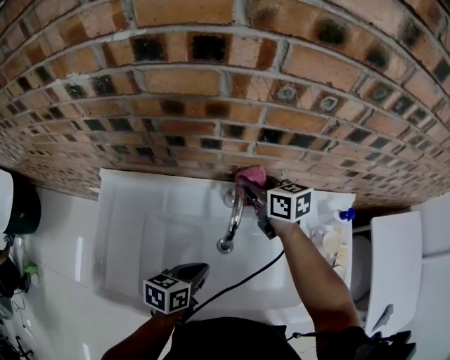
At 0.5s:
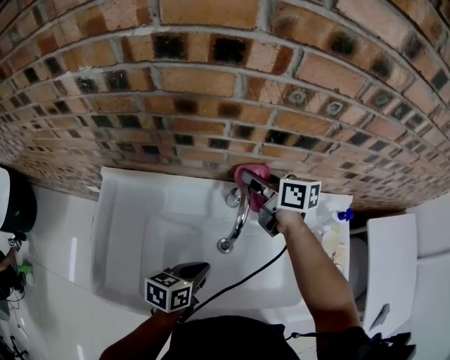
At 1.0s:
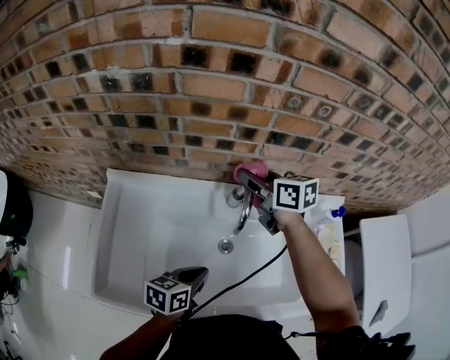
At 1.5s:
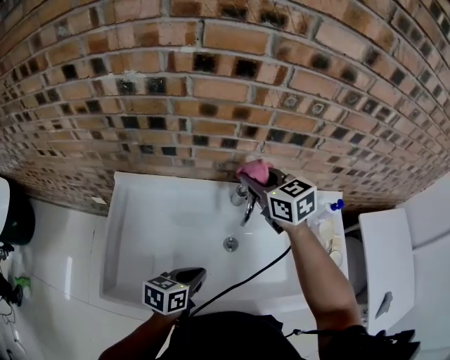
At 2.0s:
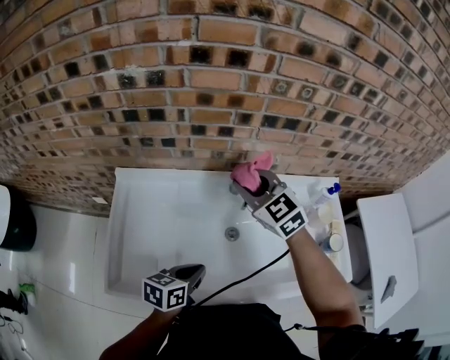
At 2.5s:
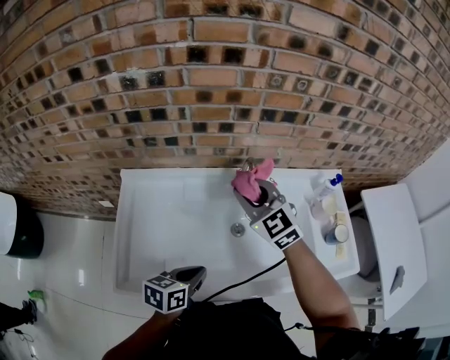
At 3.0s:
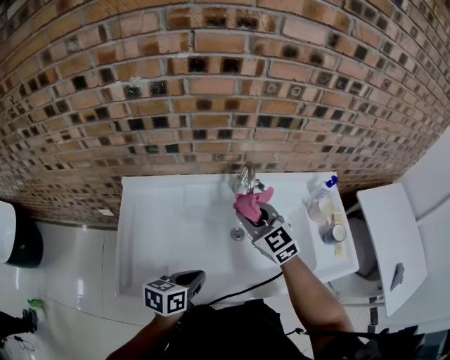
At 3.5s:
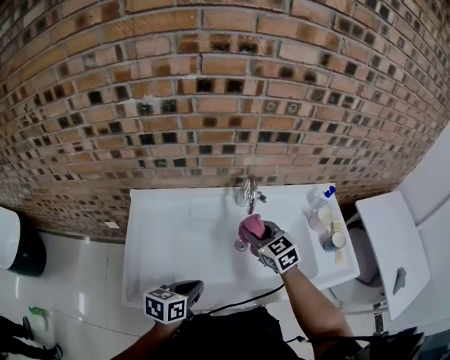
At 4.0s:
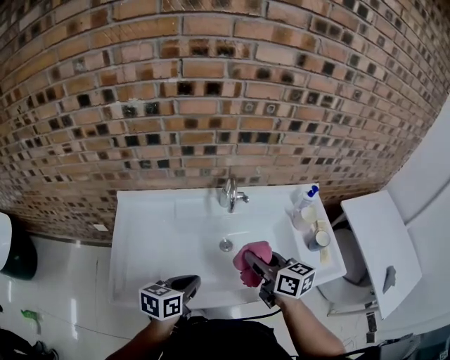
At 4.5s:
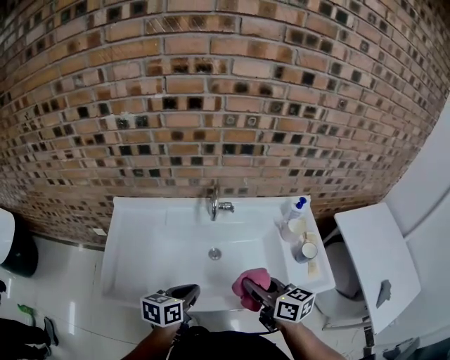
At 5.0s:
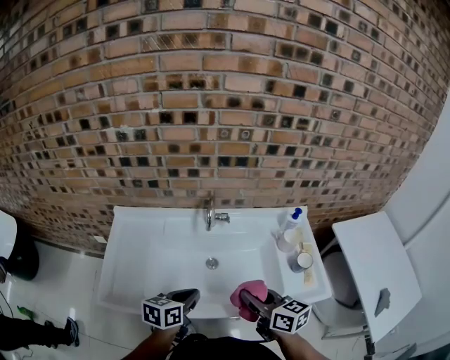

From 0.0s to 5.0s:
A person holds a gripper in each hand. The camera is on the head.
From 0.0s to 2.5s: The right gripper travels backward and upward by about 20 cm, and rolls counterclockwise, seen from behind, by approximately 50 degrees, while the left gripper shifts some 15 cm backward and to the left.
From 2.5s to 5.0s: The right gripper shifts approximately 30 cm backward and to the right, and twists approximately 50 degrees clockwise, seen from behind. Meanwhile the left gripper shifts approximately 10 cm to the right.

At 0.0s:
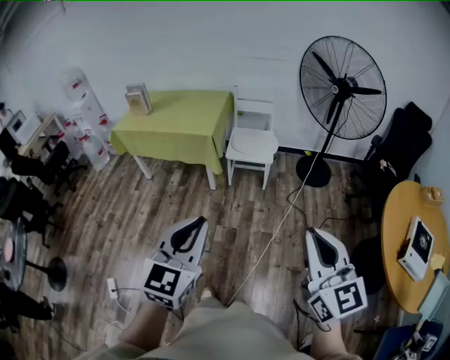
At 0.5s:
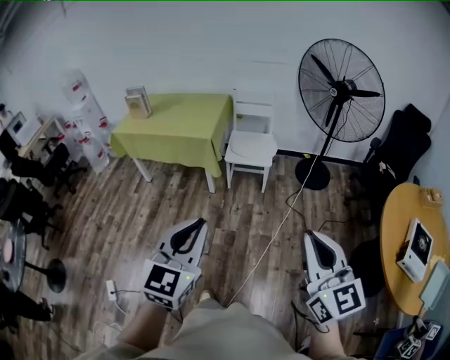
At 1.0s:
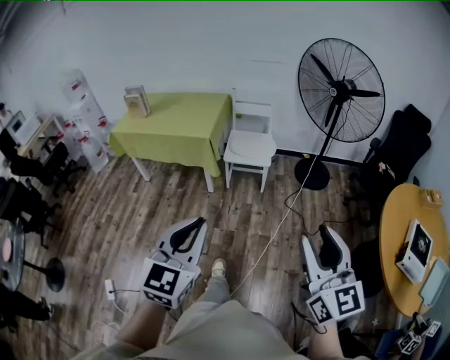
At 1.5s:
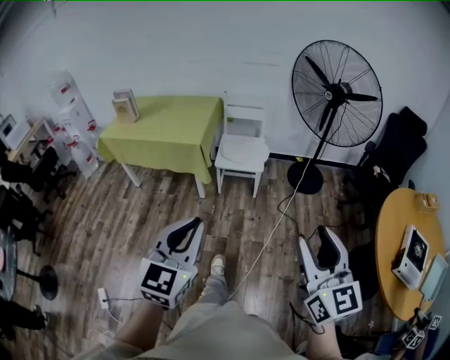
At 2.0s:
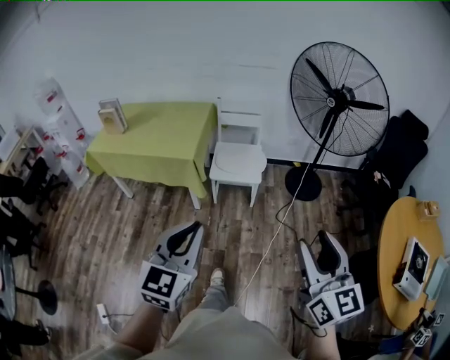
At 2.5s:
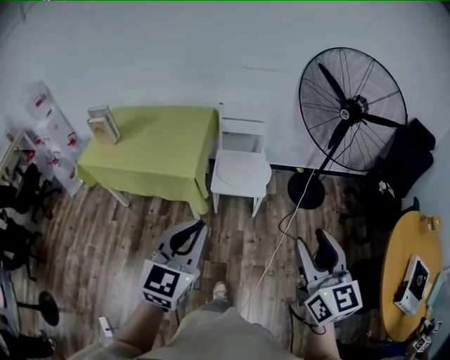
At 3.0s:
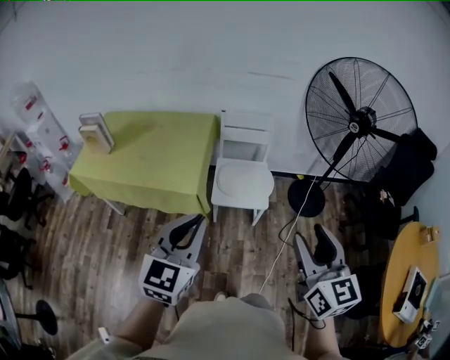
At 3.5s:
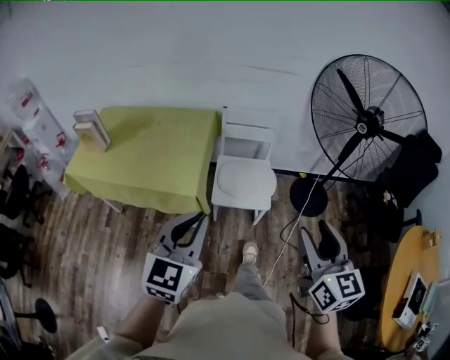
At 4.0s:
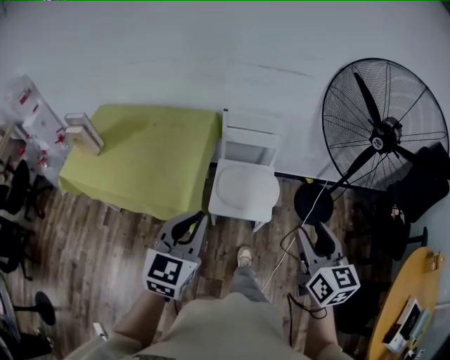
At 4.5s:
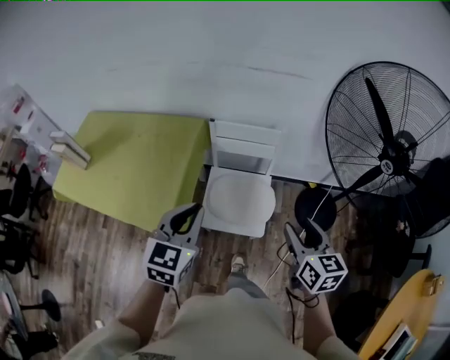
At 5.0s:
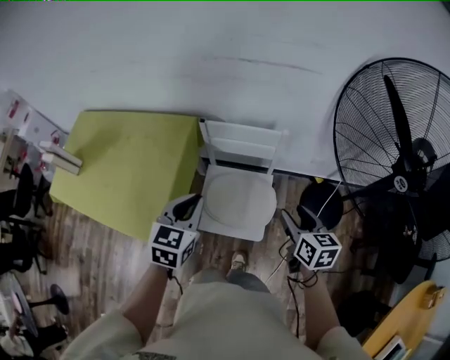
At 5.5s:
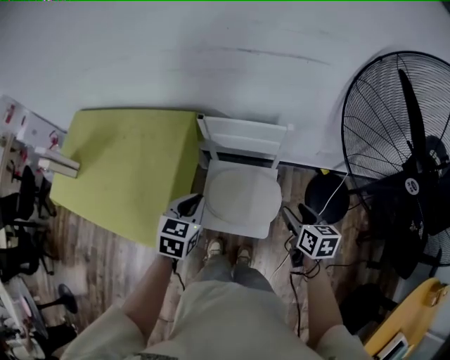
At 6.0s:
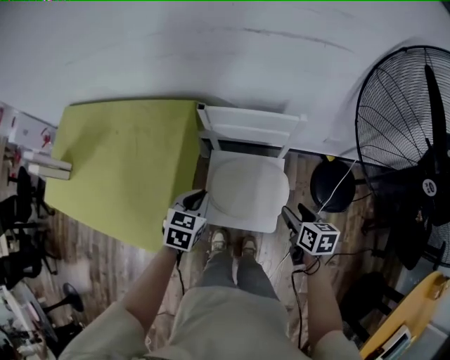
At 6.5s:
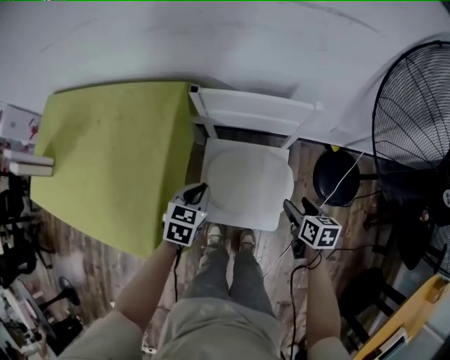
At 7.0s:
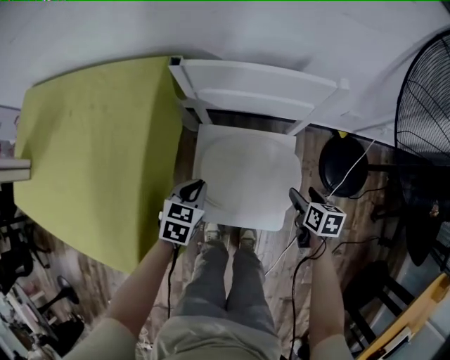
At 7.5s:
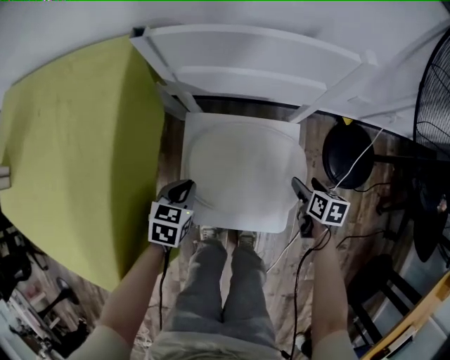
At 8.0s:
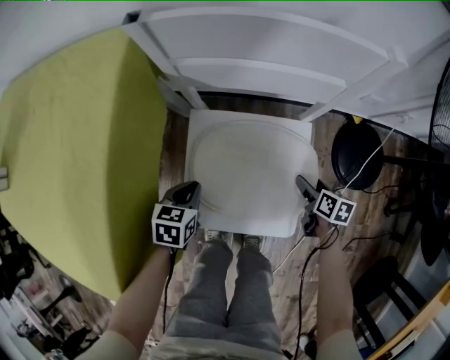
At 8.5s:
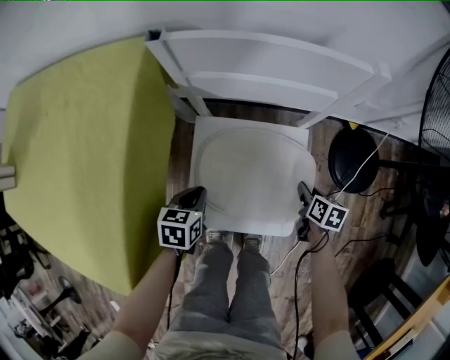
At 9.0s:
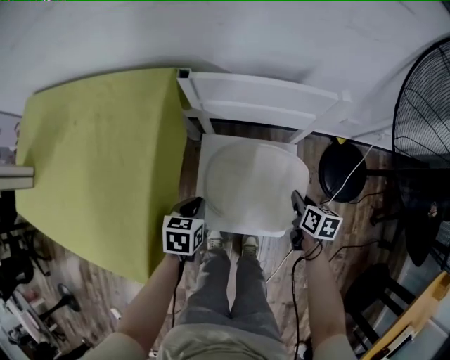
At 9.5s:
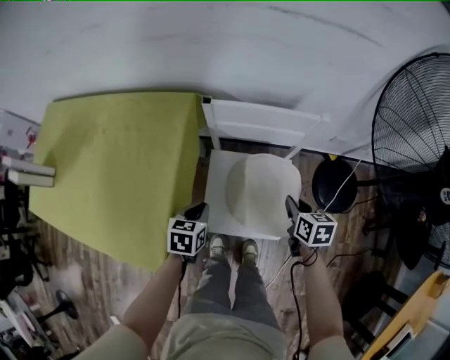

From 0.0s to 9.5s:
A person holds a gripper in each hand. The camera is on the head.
From 0.0s to 2.0s: Both grippers move forward, roughly 15 cm. The right gripper opens its fingers.
From 2.0s to 4.0s: The pair of grippers is taken forward, some 50 cm.
From 4.0s to 5.5s: The grippers both shift forward and downward by some 40 cm. The right gripper changes its angle by roughly 30 degrees; the left gripper changes its angle by roughly 30 degrees.
From 5.5s to 7.5s: The two grippers go about 40 cm downward. The right gripper changes its angle by about 20 degrees.
From 7.5s to 9.5s: The left gripper shifts some 15 cm upward. Meanwhile the right gripper travels upward and to the left by about 25 cm, and closes up.

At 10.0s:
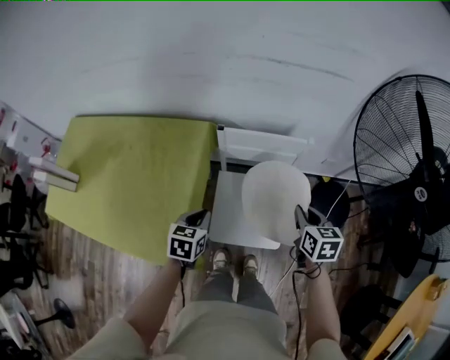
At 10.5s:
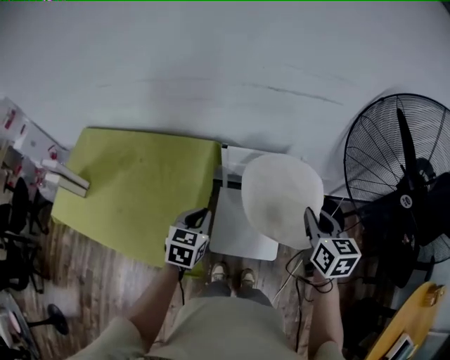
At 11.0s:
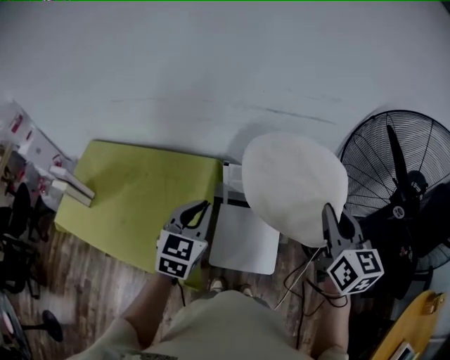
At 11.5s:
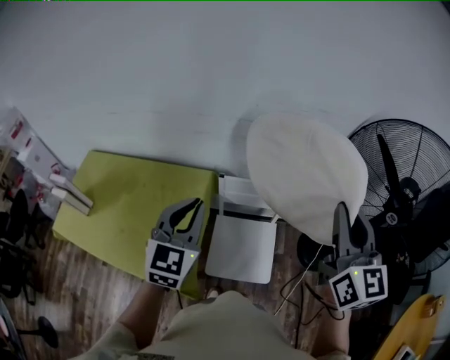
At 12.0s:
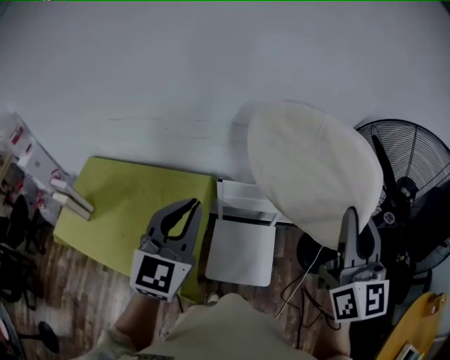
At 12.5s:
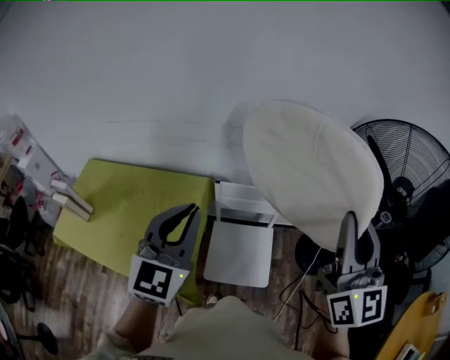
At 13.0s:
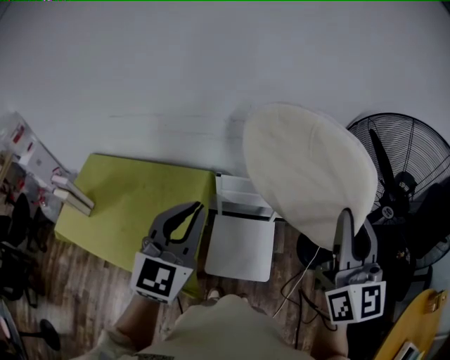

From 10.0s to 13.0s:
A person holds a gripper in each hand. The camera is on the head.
From 10.0s to 11.5s: The grippers both shift upward by roughly 35 cm. The right gripper points its fingers roughly 40 degrees further upward, while the left gripper tips its fingers upward by some 40 degrees.
From 11.5s to 13.0s: The left gripper is displaced upward by approximately 5 cm, while the right gripper shifts by roughly 5 cm.

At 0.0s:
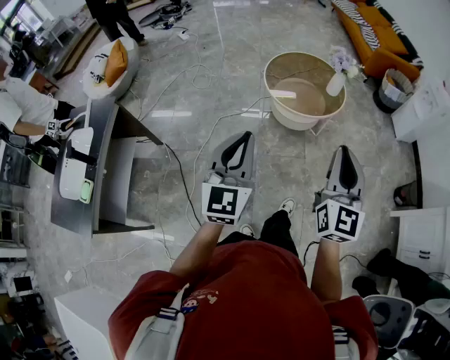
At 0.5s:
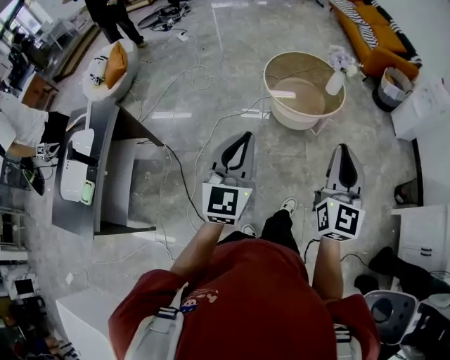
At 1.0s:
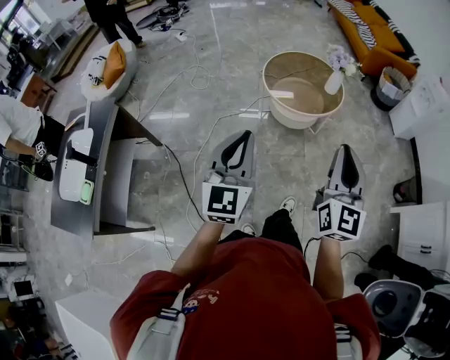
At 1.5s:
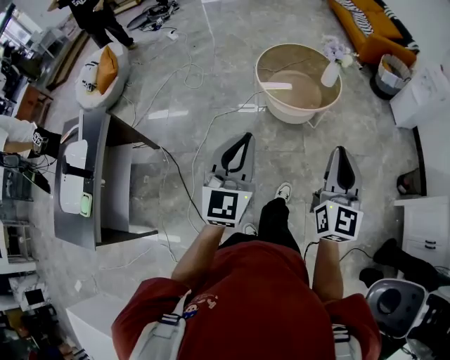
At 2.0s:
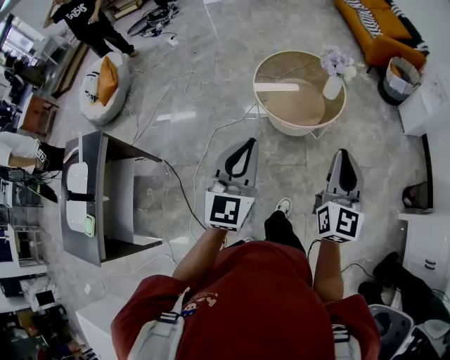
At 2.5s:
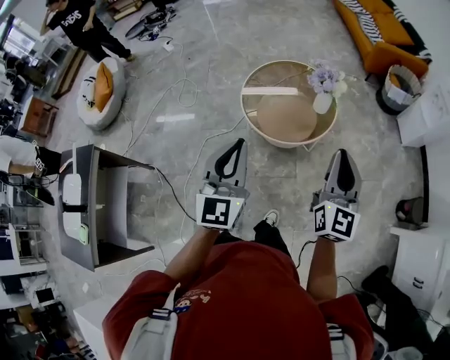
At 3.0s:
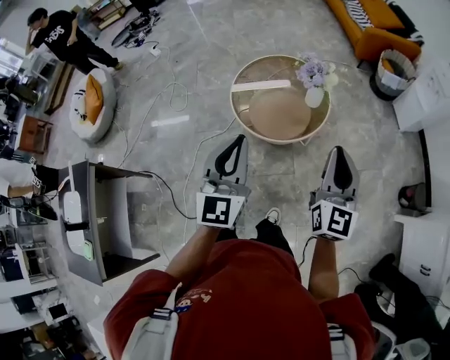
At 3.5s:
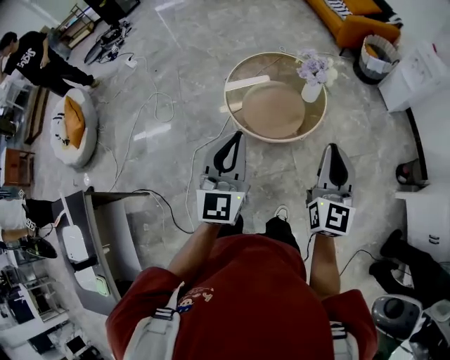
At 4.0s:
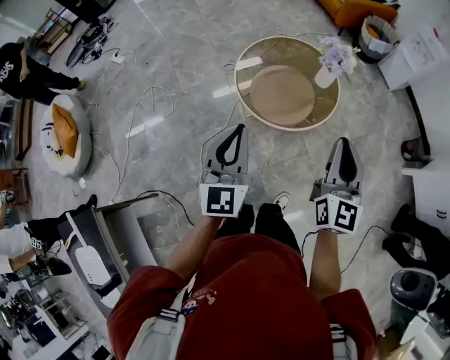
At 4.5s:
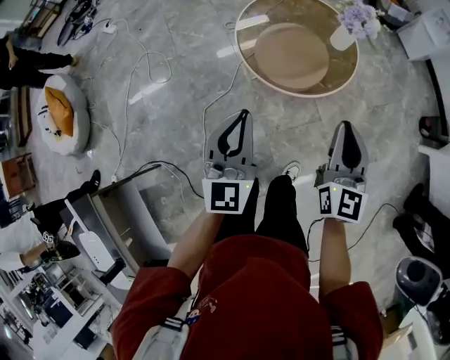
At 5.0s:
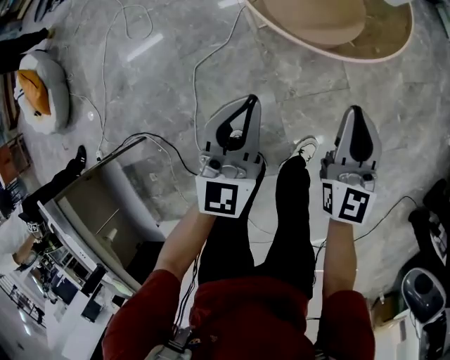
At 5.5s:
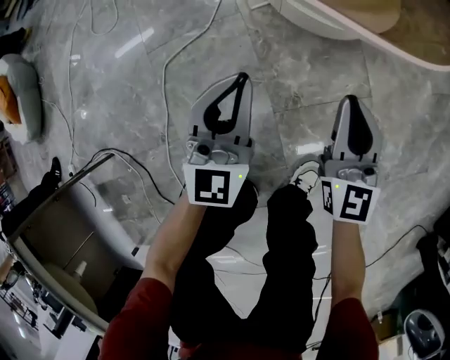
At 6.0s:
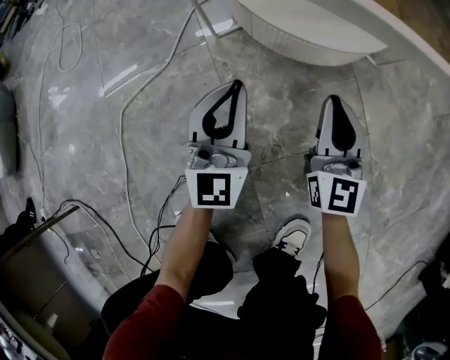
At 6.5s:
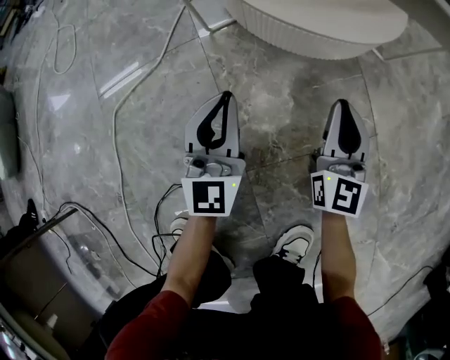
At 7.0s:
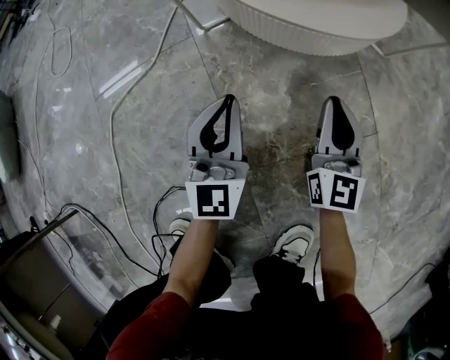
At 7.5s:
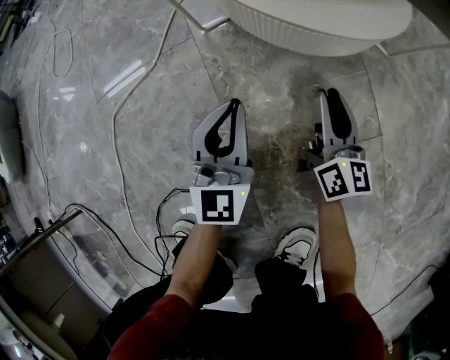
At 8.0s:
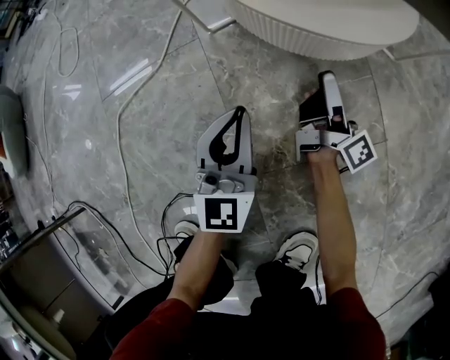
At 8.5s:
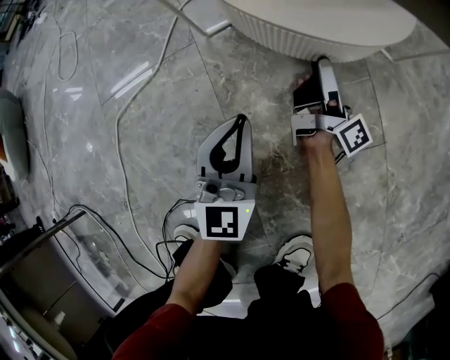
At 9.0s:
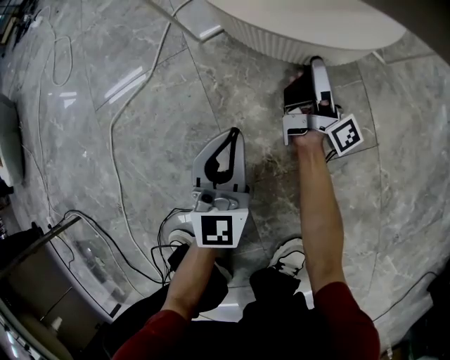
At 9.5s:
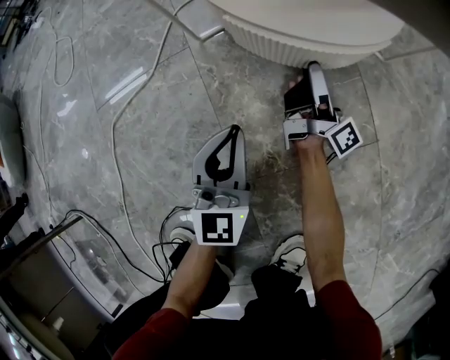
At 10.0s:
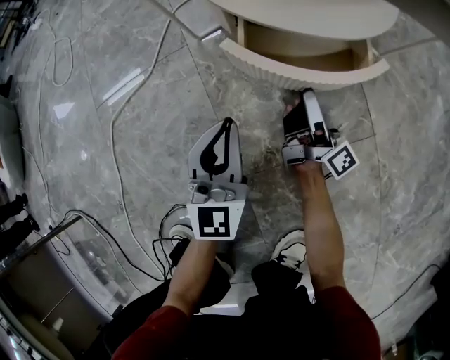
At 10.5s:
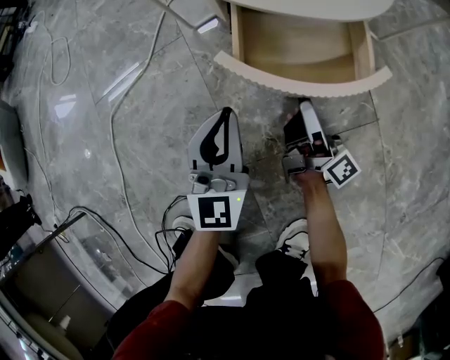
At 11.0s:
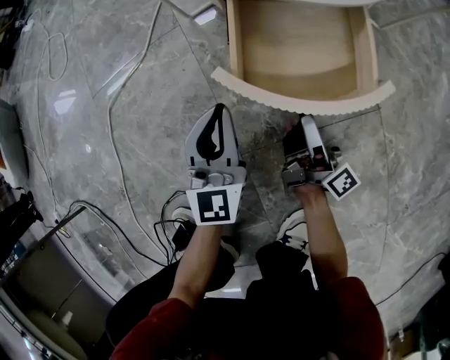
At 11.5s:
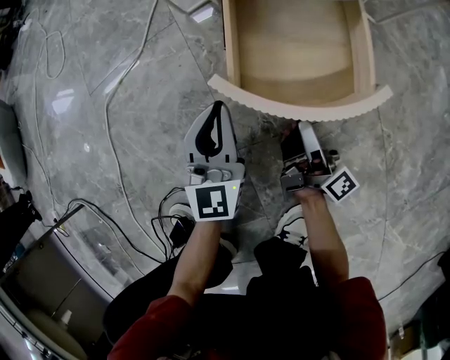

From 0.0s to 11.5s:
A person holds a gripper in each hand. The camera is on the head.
From 0.0s to 2.0s: The grippers both shift forward by about 15 cm.
From 2.0s to 4.0s: The two grippers go approximately 25 cm forward and to the left.
From 4.0s to 6.0s: The grippers both shift downward by about 80 cm.
From 6.0s to 7.5s: The two grippers go roughly 10 cm downward. The right gripper turns by roughly 30 degrees.
From 7.5s to 9.5s: The right gripper heads forward, covering about 10 cm, rolls clockwise, seen from behind, by about 50 degrees, and opens its fingers.
From 9.5s to 11.5s: The right gripper travels backward by some 20 cm.
